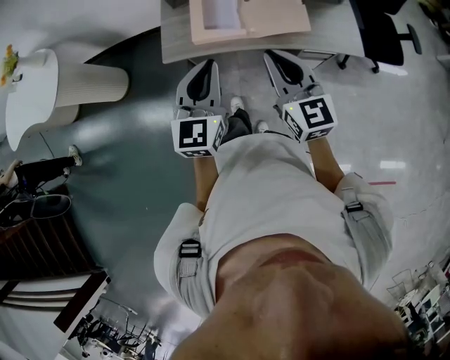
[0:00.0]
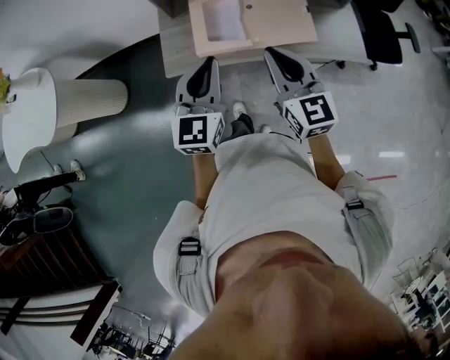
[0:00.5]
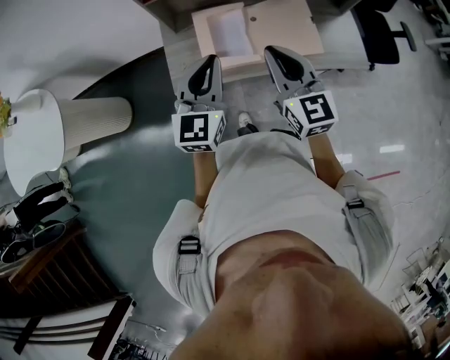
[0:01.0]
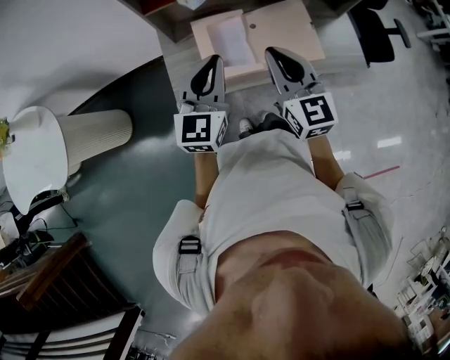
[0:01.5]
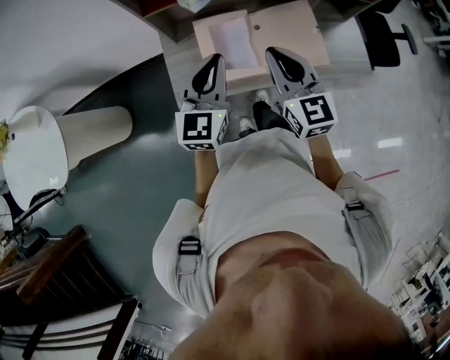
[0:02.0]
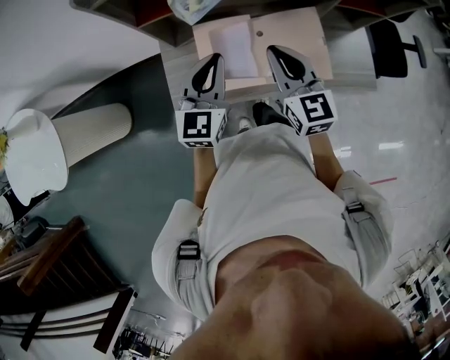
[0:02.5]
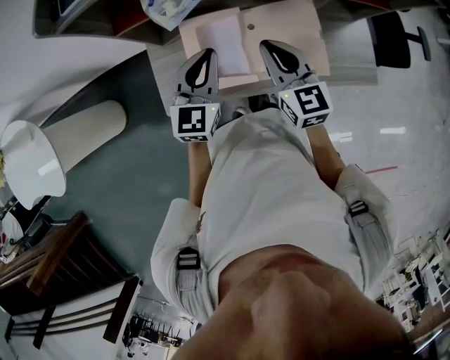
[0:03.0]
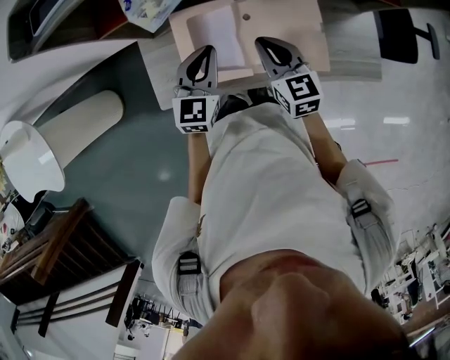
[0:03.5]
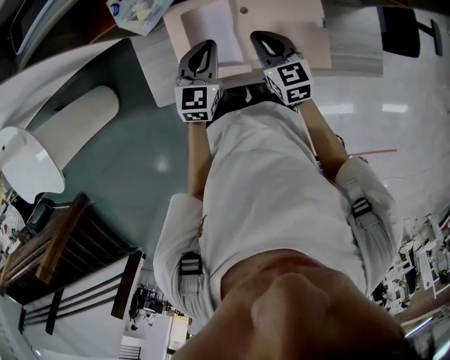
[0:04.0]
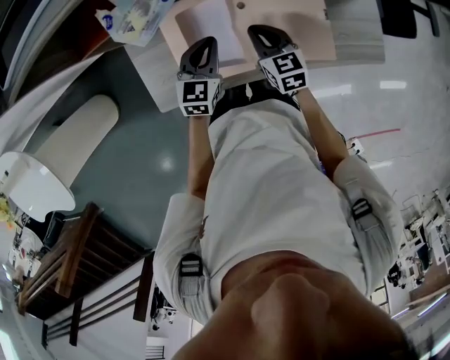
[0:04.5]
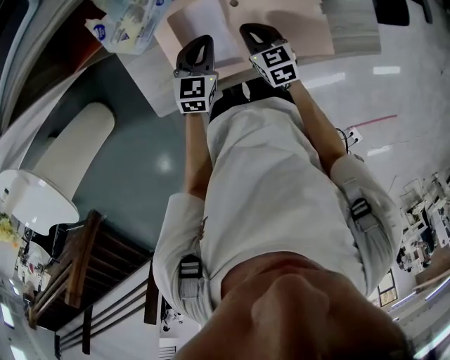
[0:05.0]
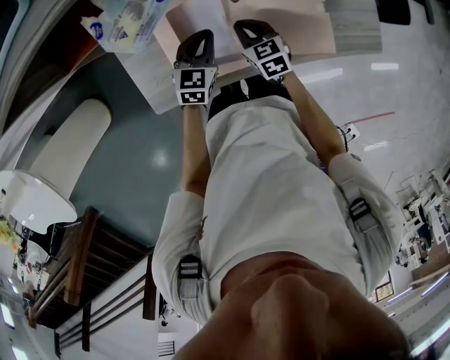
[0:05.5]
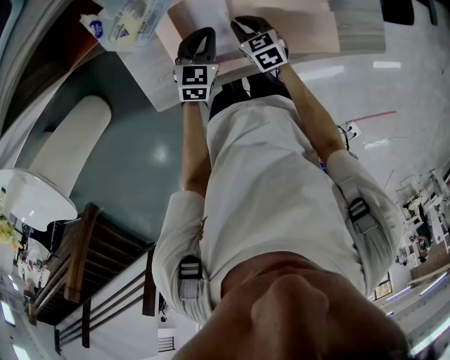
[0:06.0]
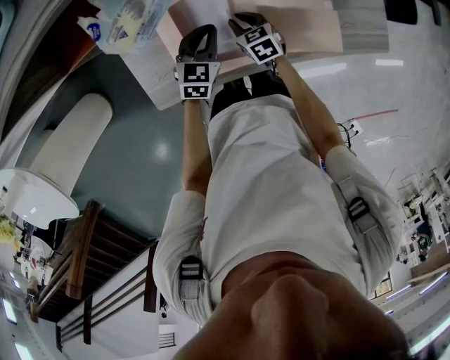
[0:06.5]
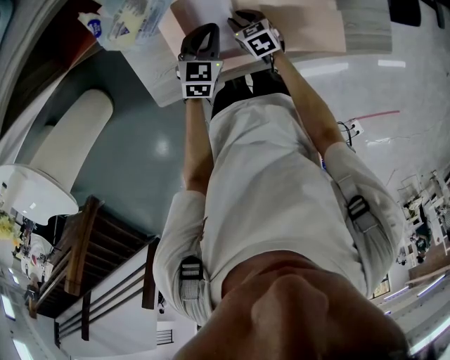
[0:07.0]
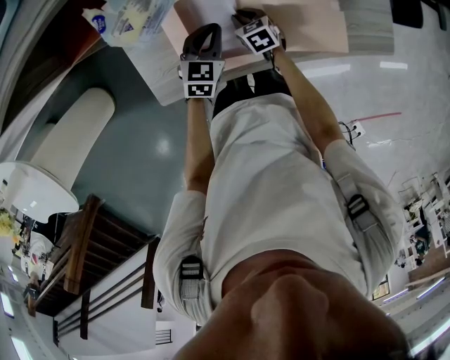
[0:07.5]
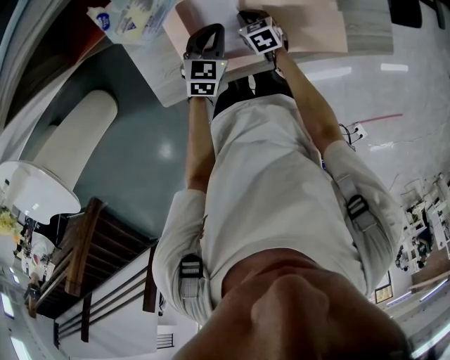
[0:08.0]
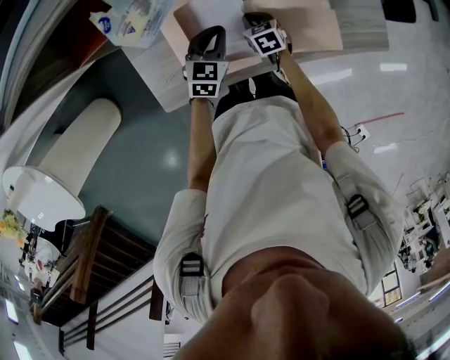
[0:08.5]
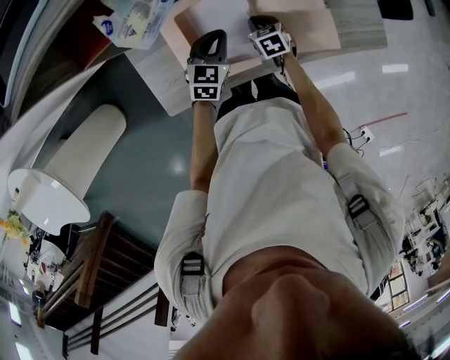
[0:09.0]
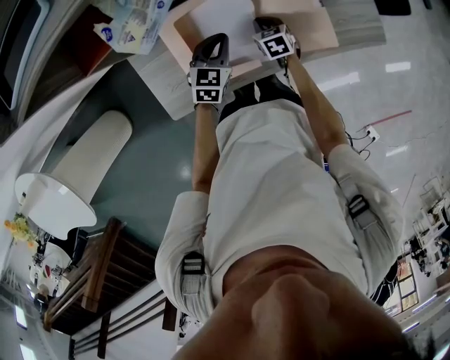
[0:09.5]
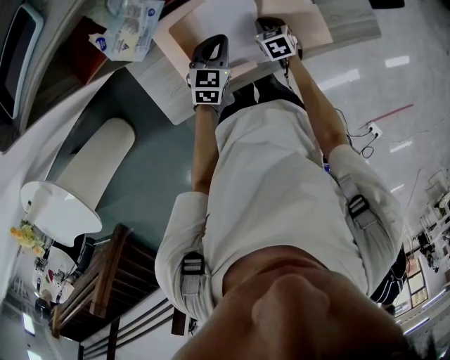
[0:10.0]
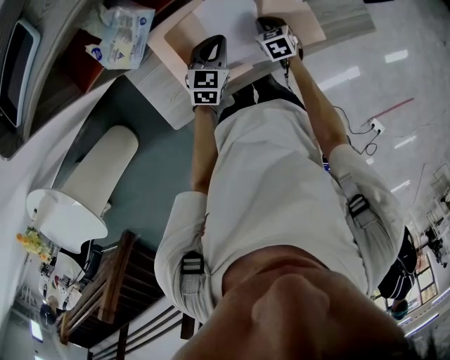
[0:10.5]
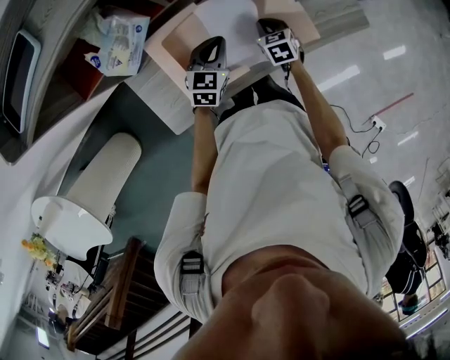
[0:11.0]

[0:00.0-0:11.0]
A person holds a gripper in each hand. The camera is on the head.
0:00.0 to 0:02.0: Both grippers travel together forward, some 25 cm.
0:02.0 to 0:03.5: The grippers both shift downward, forward and to the right by approximately 20 cm.
0:03.5 to 0:05.5: Both grippers travel together downward, about 20 cm. The right gripper swivels some 20 degrees; the left gripper swivels some 20 degrees.
0:05.5 to 0:07.5: The right gripper shifts roughly 10 cm downward.
0:07.5 to 0:09.0: The right gripper shifts approximately 5 cm to the right.
0:09.0 to 0:11.0: The left gripper shifts roughly 5 cm to the right. Meanwhile the right gripper goes about 10 cm to the right and upward.

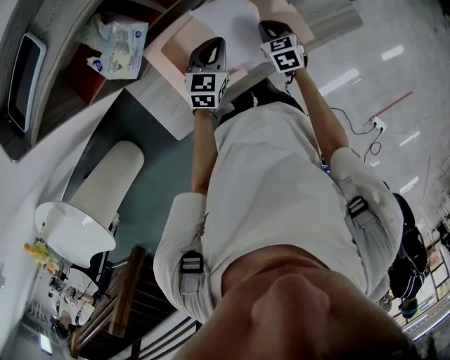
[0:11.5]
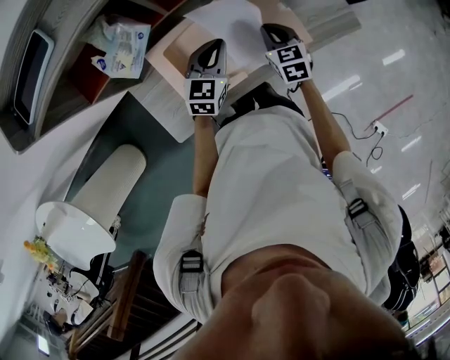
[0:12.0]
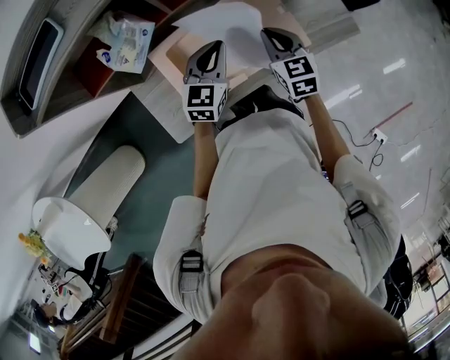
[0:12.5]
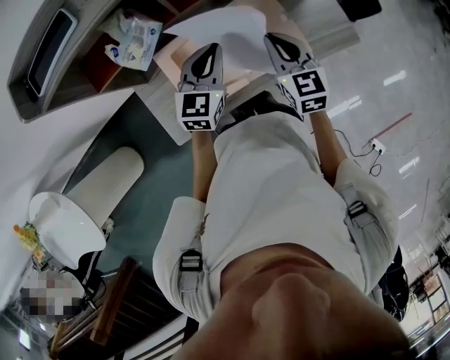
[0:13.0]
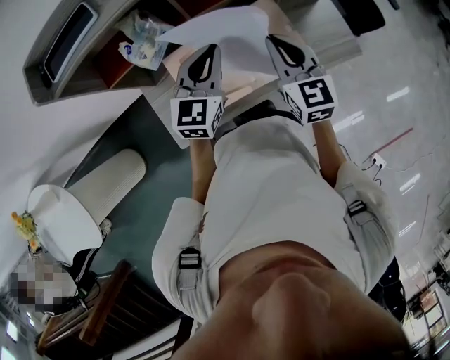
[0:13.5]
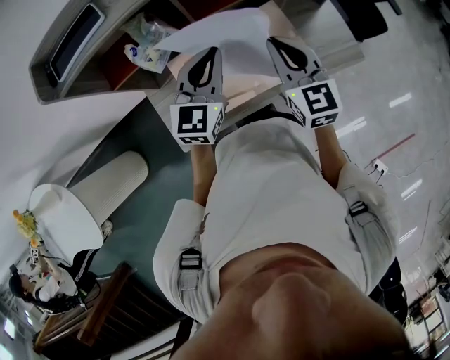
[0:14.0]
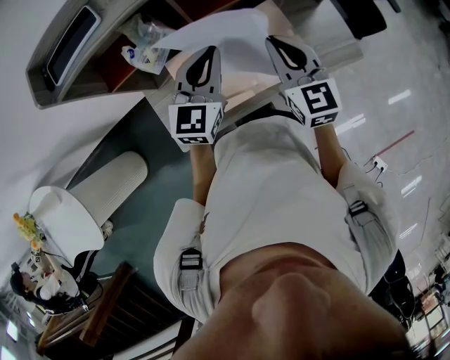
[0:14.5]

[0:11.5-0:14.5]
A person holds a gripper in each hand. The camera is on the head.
0:11.5 to 0:13.0: Both grippers travel together upward, roughly 15 cm. The right gripper turns by about 20 degrees.
0:13.0 to 0:14.5: Both grippers travel together upward, approximately 10 cm.

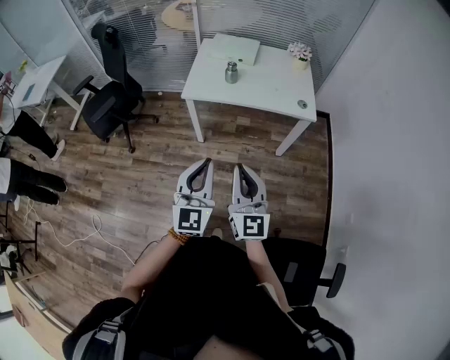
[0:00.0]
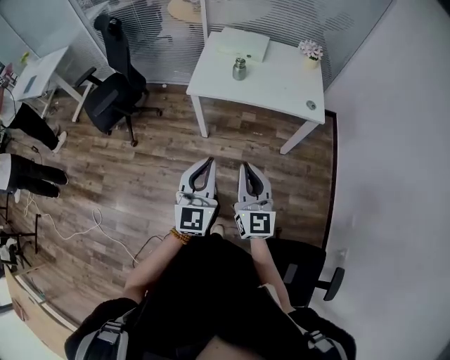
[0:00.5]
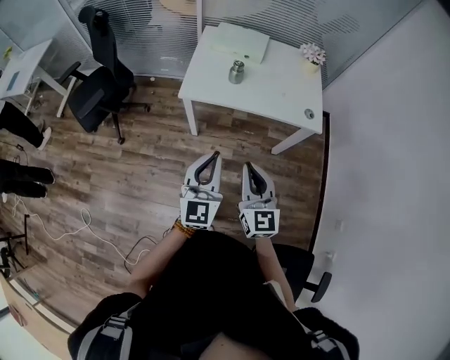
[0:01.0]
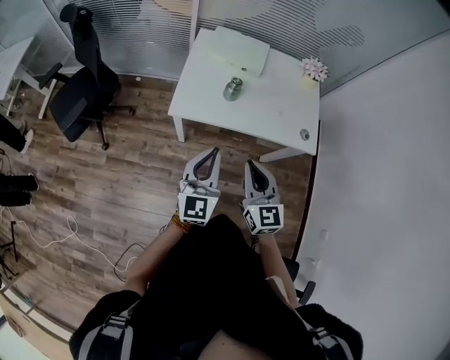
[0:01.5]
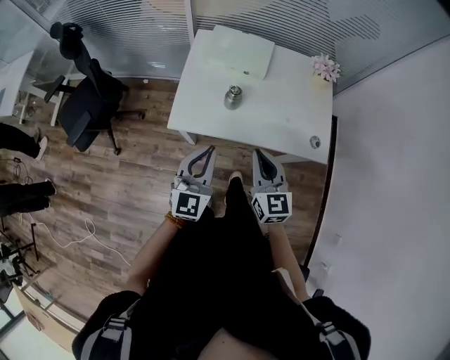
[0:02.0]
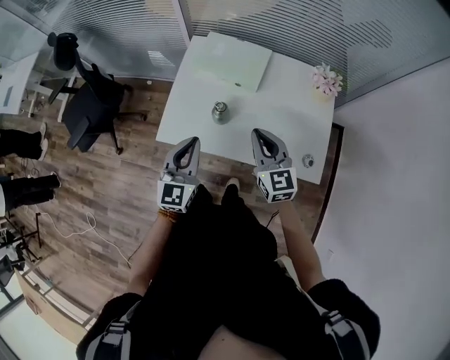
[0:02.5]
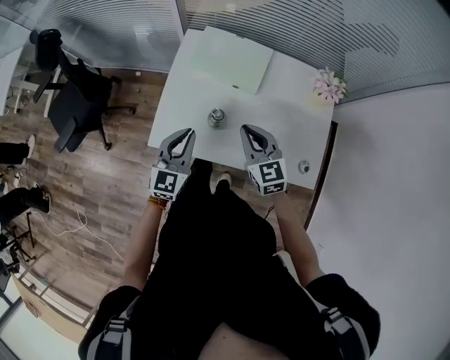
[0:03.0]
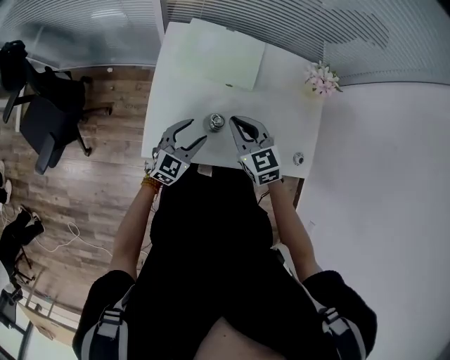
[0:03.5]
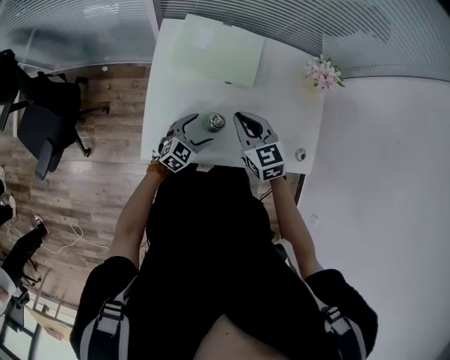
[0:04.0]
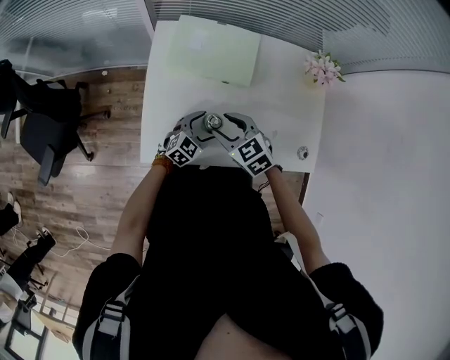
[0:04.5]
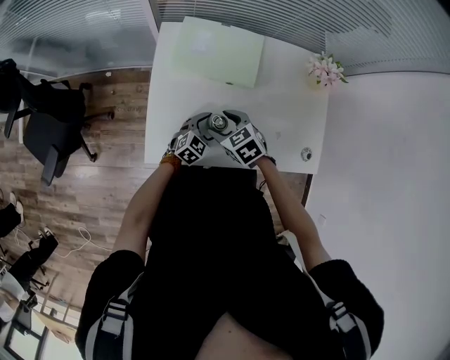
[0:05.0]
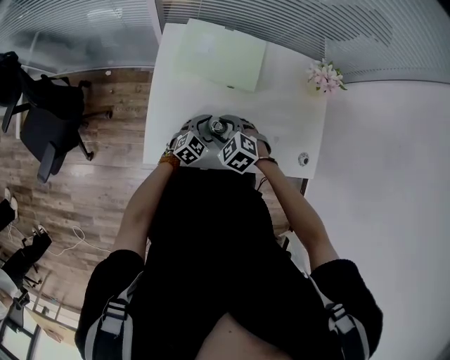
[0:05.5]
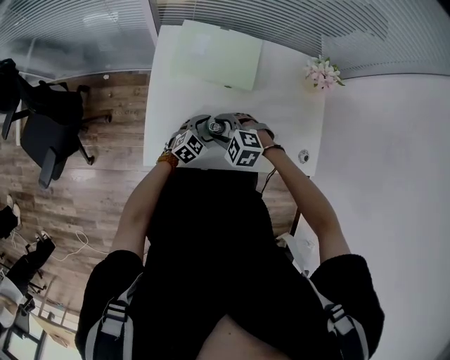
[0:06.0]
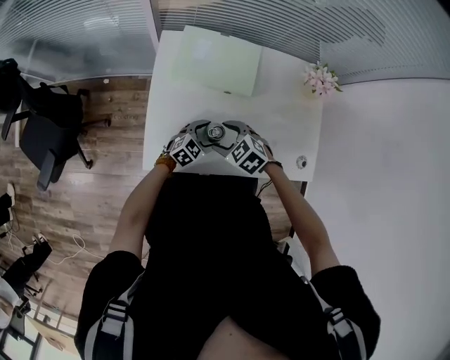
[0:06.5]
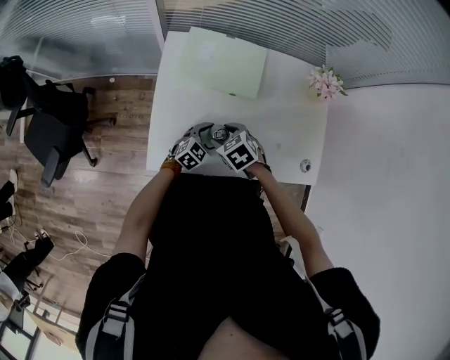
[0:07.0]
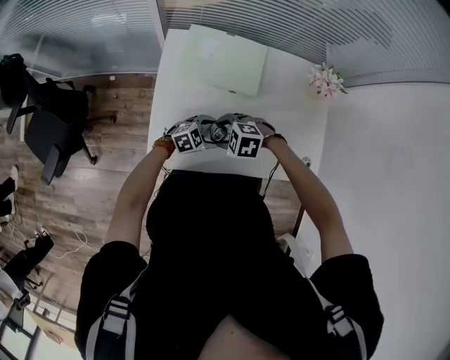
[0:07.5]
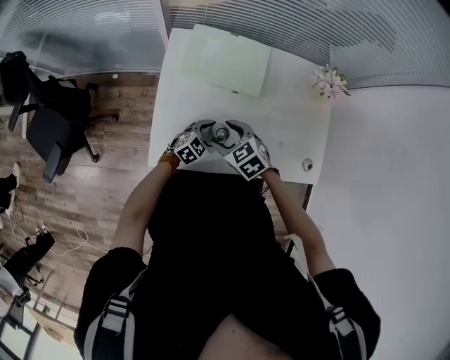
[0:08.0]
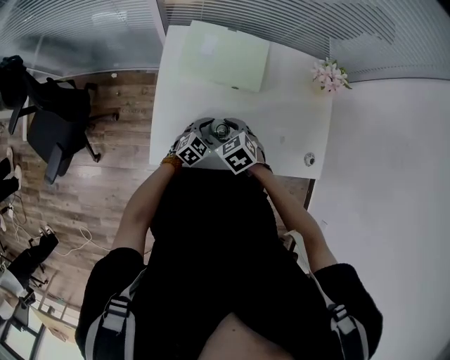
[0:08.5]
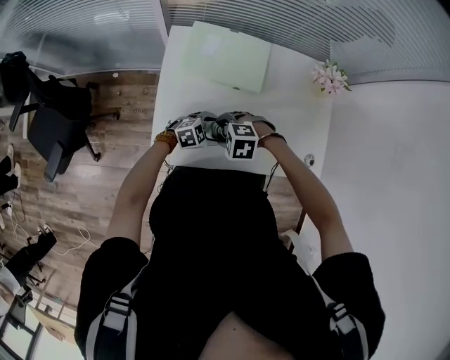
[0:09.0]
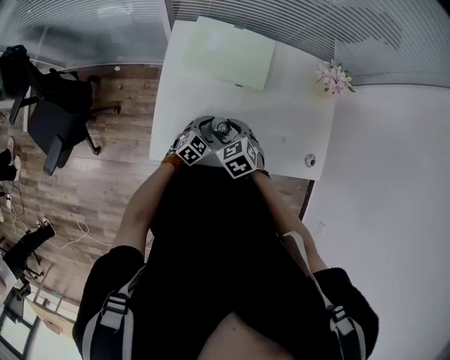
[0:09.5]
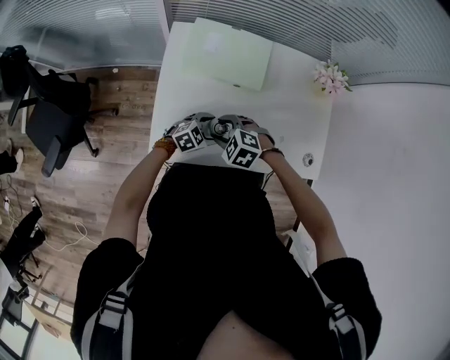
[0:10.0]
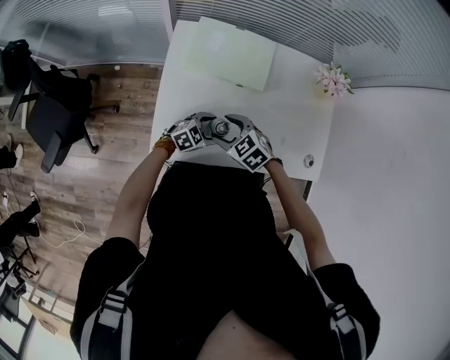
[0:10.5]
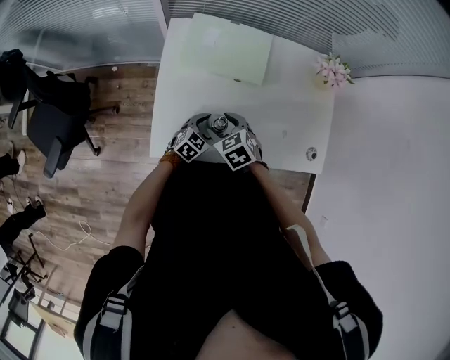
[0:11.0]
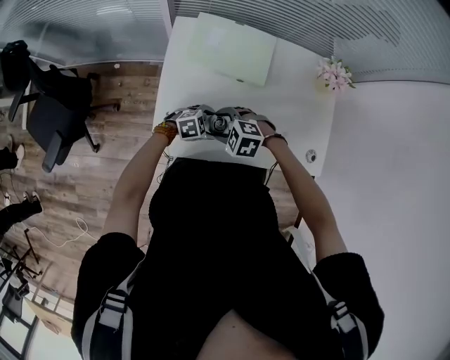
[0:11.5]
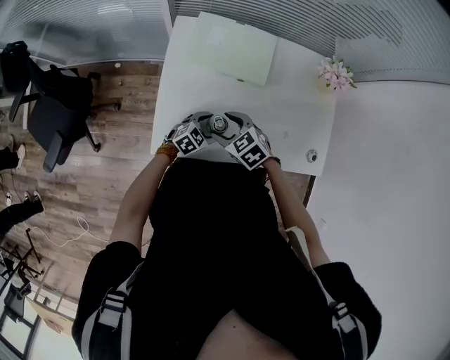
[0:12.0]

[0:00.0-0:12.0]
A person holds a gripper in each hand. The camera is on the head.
0:00.0 to 0:02.0: Both grippers travel together forward, roughly 40 cm. The right gripper swivels about 20 degrees.
0:02.0 to 0:04.0: The left gripper heads downward and forward, covering approximately 35 cm, changes its angle by about 40 degrees, and opens its fingers; the right gripper moves forward, roughly 25 cm, and swivels approximately 30 degrees.
0:04.0 to 0:06.0: The left gripper ends up approximately 5 cm from where it was; the right gripper is displaced downward by roughly 10 cm, changes its angle by roughly 50 degrees, and opens up.
0:06.0 to 0:08.0: The right gripper changes its angle by some 40 degrees.
0:08.0 to 0:10.0: The right gripper turns by some 30 degrees.
0:10.0 to 0:12.0: The right gripper rotates some 30 degrees.

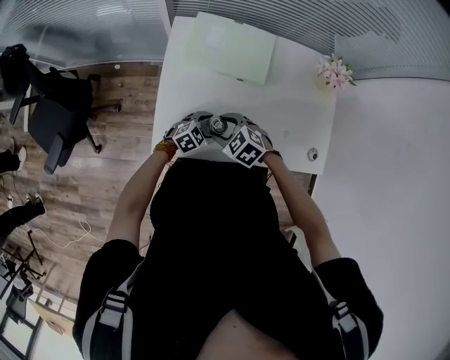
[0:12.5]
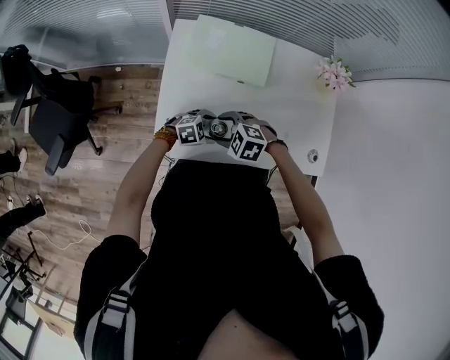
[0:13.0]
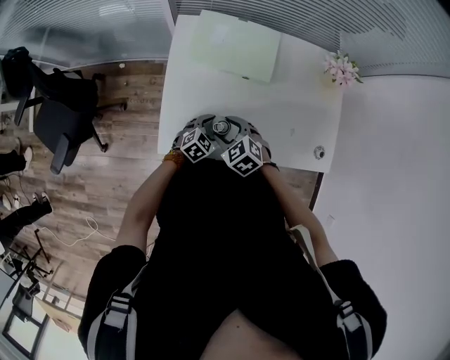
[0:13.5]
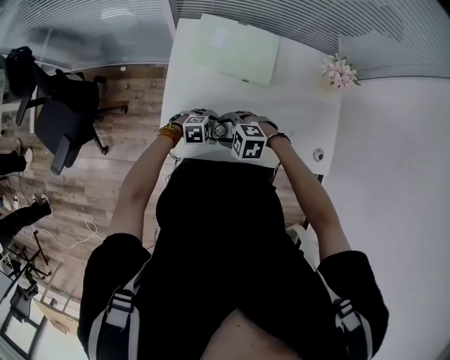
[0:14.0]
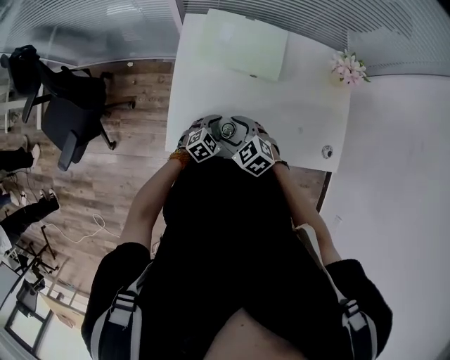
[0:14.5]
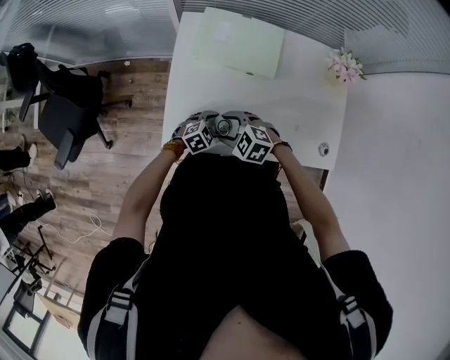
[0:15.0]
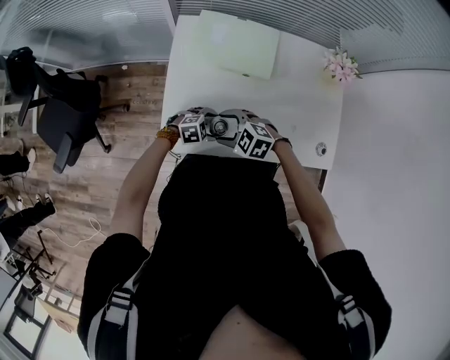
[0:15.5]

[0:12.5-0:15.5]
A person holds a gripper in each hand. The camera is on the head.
0:12.5 to 0:14.0: The left gripper changes its angle by approximately 30 degrees; the right gripper turns by approximately 30 degrees.
